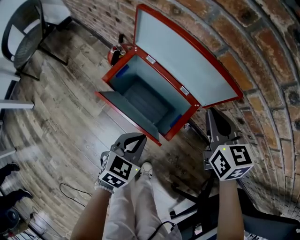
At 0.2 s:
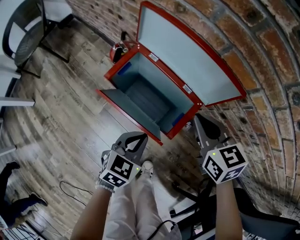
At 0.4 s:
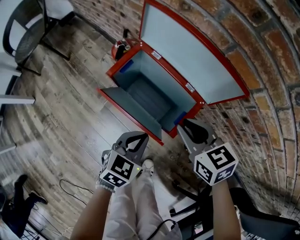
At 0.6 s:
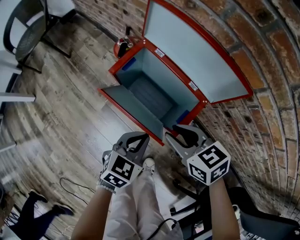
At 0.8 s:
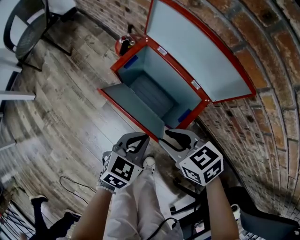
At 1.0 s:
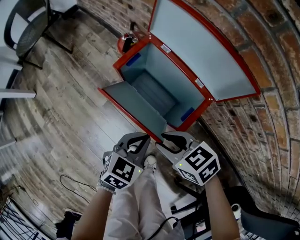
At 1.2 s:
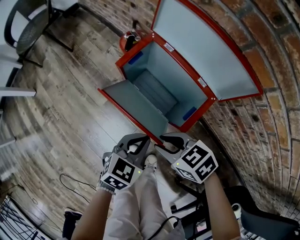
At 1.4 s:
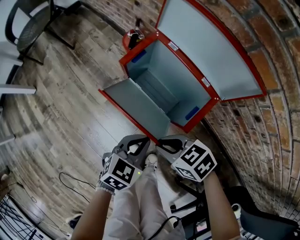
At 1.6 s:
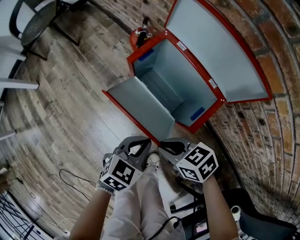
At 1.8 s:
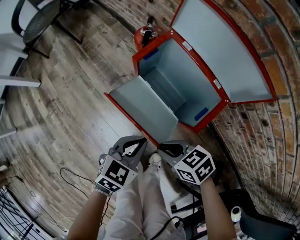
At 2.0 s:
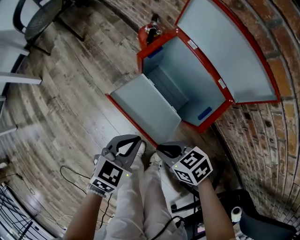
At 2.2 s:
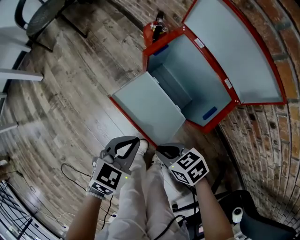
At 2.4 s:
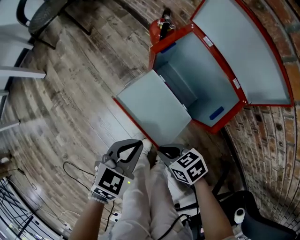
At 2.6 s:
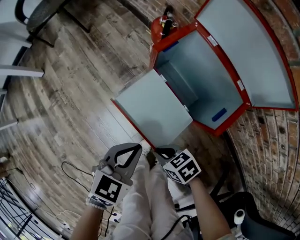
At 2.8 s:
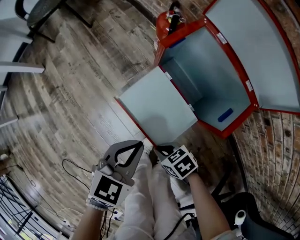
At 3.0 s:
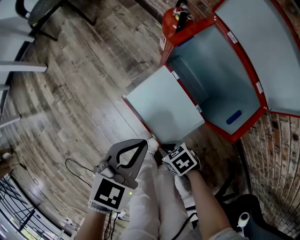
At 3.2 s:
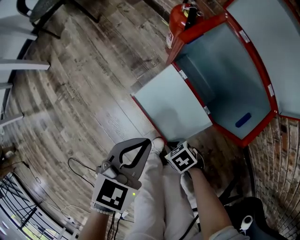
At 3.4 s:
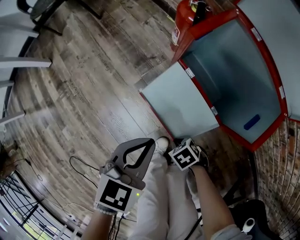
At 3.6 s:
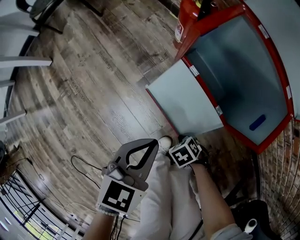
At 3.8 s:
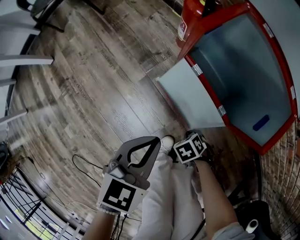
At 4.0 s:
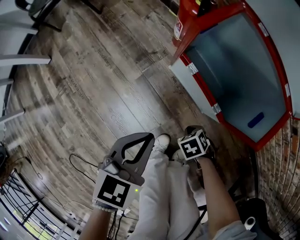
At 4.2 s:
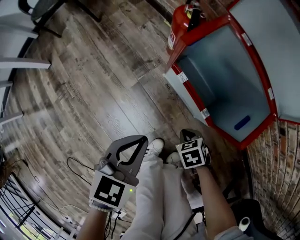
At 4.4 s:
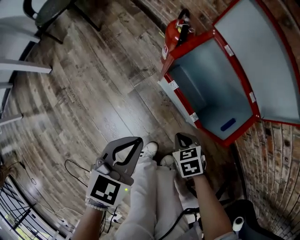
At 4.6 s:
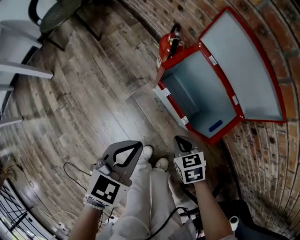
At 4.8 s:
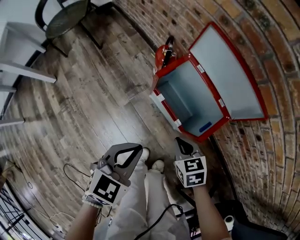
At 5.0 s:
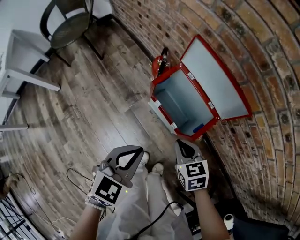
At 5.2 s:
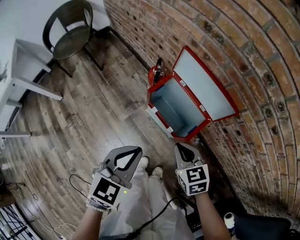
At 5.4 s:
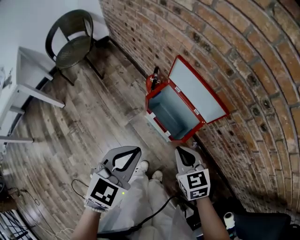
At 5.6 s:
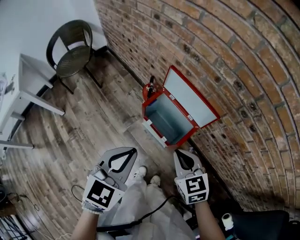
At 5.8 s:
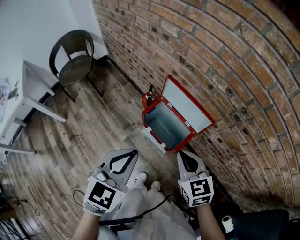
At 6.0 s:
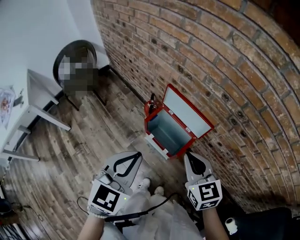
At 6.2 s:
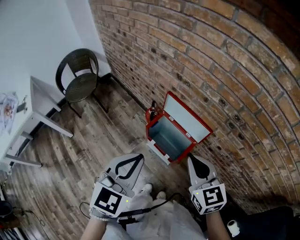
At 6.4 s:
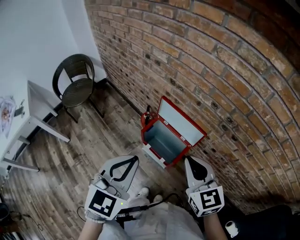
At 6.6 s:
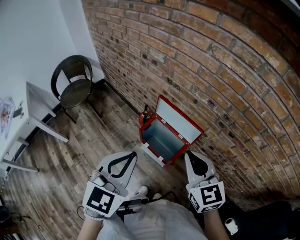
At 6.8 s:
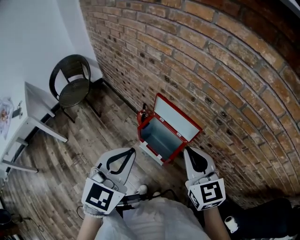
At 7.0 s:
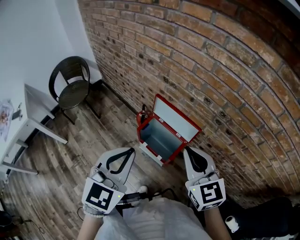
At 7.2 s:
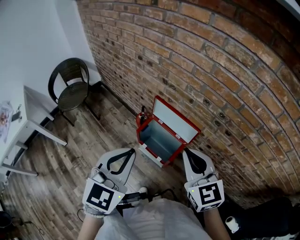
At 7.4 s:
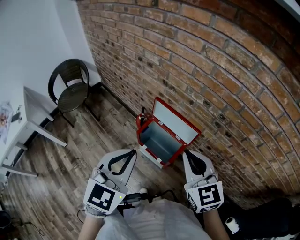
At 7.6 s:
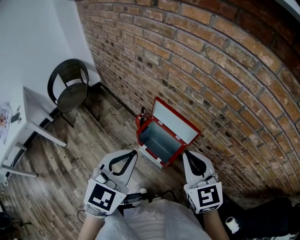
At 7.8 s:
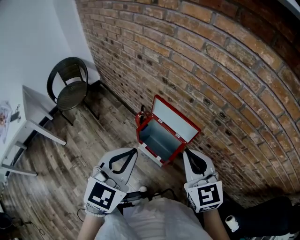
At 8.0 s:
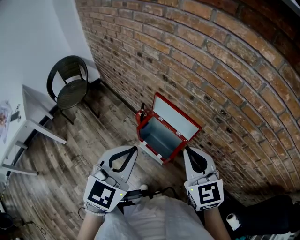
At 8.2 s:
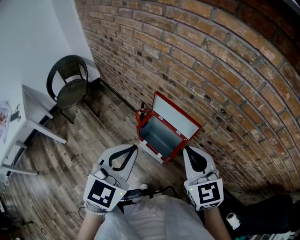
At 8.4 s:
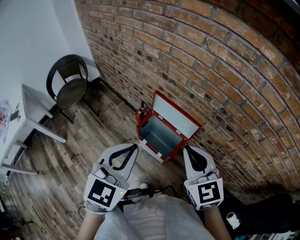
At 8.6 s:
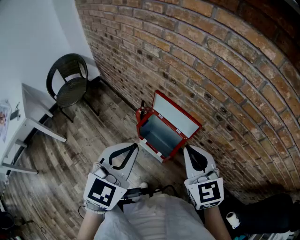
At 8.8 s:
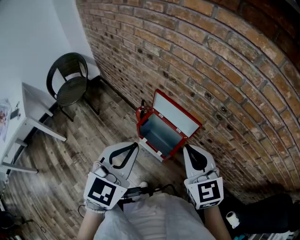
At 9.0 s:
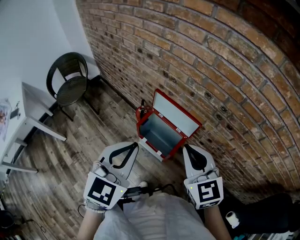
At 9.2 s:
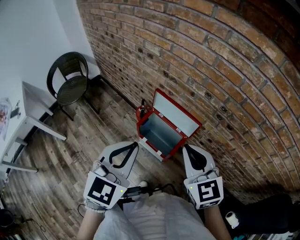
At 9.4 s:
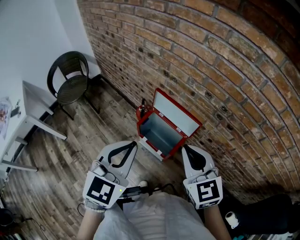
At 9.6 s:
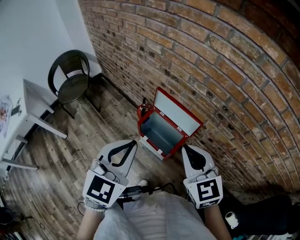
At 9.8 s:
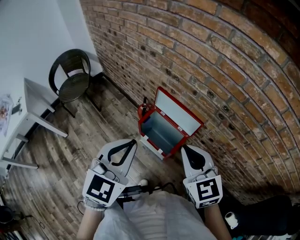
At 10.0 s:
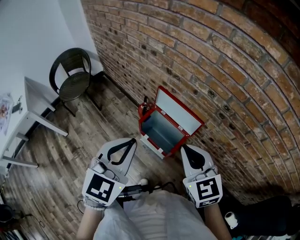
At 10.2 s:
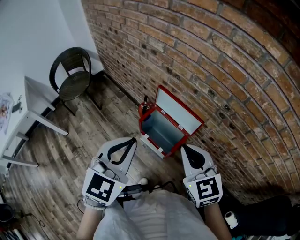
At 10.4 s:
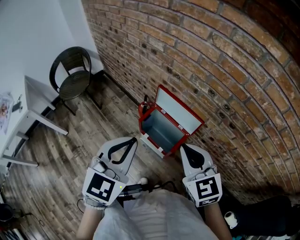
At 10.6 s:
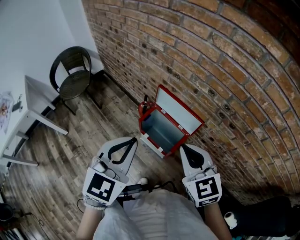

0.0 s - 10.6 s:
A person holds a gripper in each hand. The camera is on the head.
0.0 s - 1.6 s: The left gripper ends up roughly 10 cm from where it was. Meanwhile the right gripper ends up about 30 cm from where it was, and rotates approximately 60 degrees.
1.6 s - 3.0 s: The right gripper shifts roughly 20 cm downward, and rotates about 20 degrees. The left gripper changes place by about 10 cm.
3.0 s - 4.6 s: The left gripper travels upward by some 5 cm. The right gripper changes place by about 20 cm, and changes its angle by roughly 30 degrees.
4.6 s - 6.0 s: The two grippers go some 40 cm upward. The left gripper changes its angle by approximately 20 degrees, while the right gripper tilts its fingers roughly 30 degrees upward.
6.0 s - 7.6 s: The left gripper moves upward, roughly 5 cm. Meanwhile the right gripper is displaced upward by roughly 10 cm.
7.6 s - 9.0 s: Neither gripper changes place.
9.0 s - 10.6 s: There are only small adjustments of the grippers.

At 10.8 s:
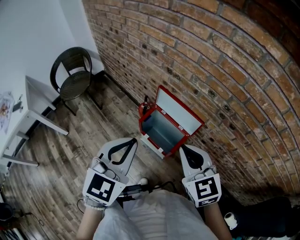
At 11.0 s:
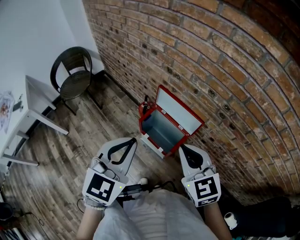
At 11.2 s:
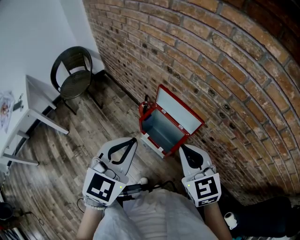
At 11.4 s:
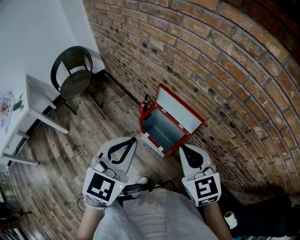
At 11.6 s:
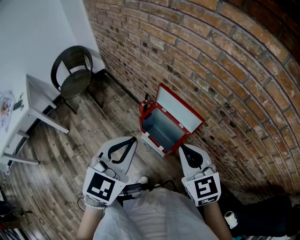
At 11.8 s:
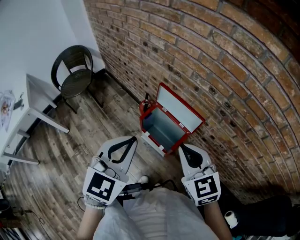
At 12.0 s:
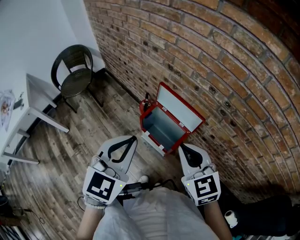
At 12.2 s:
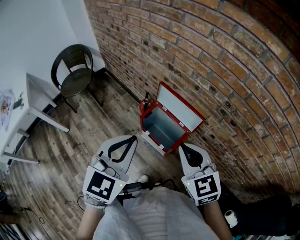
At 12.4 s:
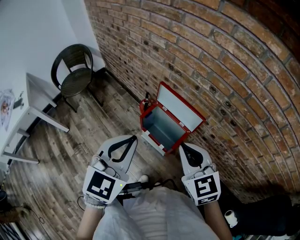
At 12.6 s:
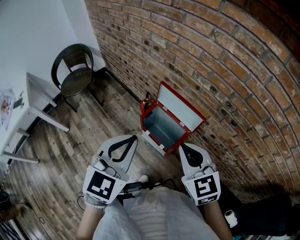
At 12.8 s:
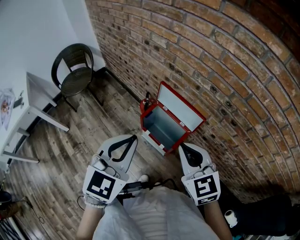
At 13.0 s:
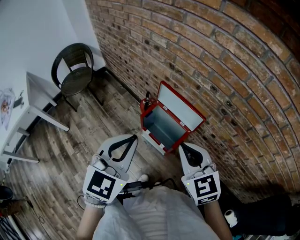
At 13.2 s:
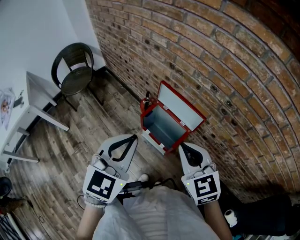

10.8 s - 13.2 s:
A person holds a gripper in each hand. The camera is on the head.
10.8 s - 12.0 s: Both grippers stay about where they are.
12.0 s - 13.2 s: Both grippers stay about where they are.

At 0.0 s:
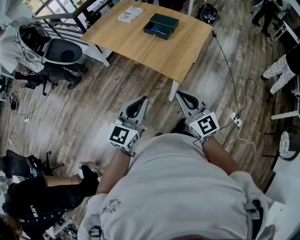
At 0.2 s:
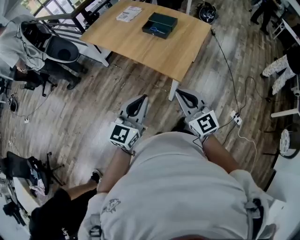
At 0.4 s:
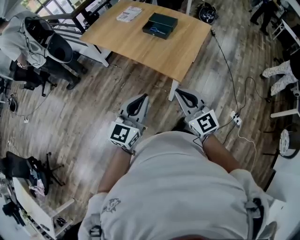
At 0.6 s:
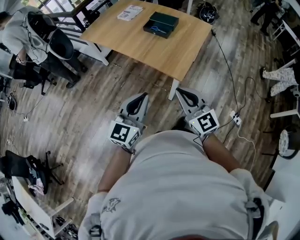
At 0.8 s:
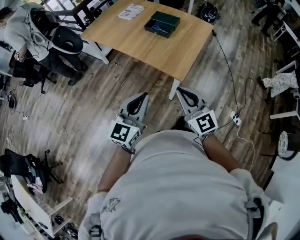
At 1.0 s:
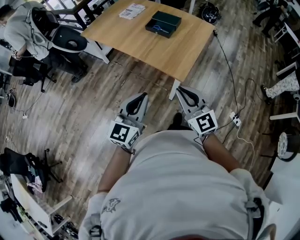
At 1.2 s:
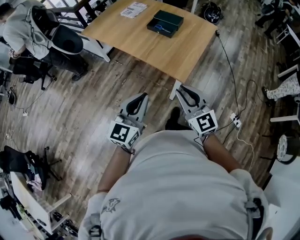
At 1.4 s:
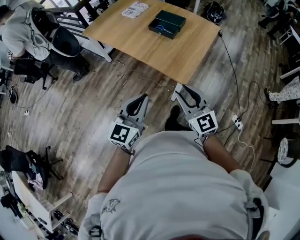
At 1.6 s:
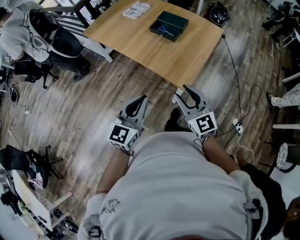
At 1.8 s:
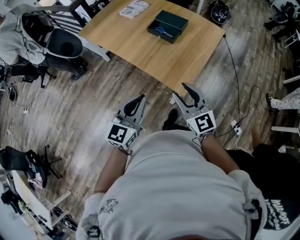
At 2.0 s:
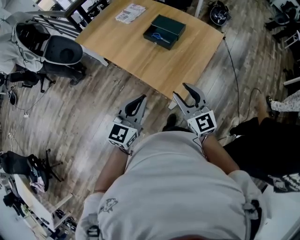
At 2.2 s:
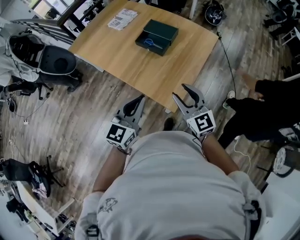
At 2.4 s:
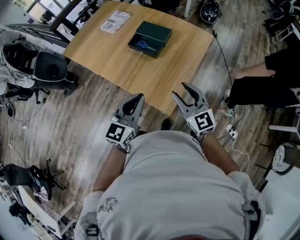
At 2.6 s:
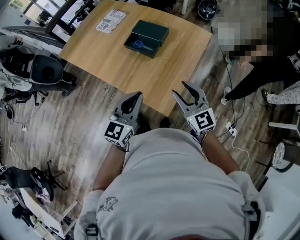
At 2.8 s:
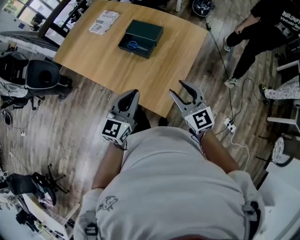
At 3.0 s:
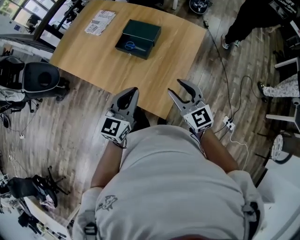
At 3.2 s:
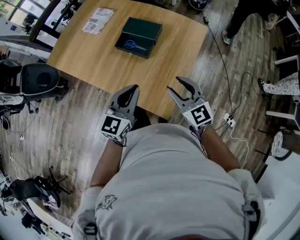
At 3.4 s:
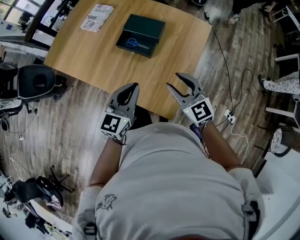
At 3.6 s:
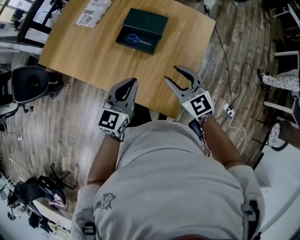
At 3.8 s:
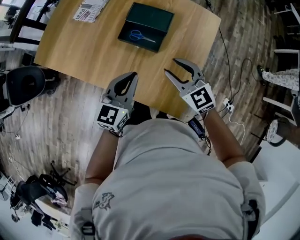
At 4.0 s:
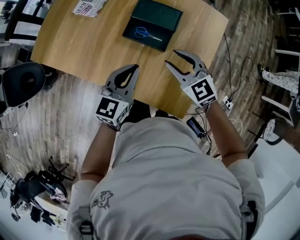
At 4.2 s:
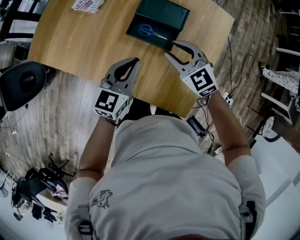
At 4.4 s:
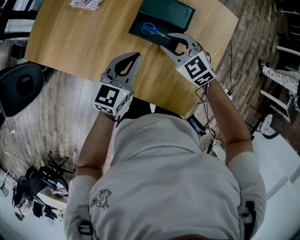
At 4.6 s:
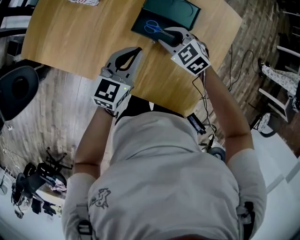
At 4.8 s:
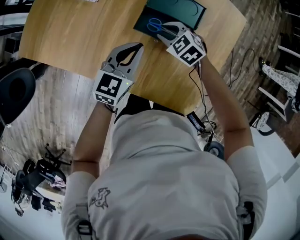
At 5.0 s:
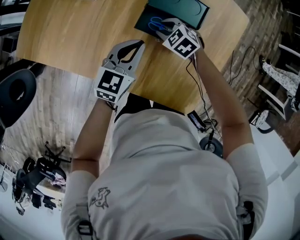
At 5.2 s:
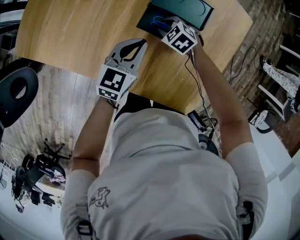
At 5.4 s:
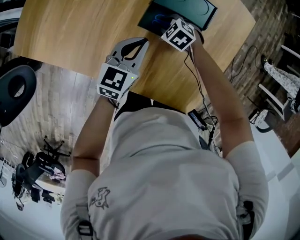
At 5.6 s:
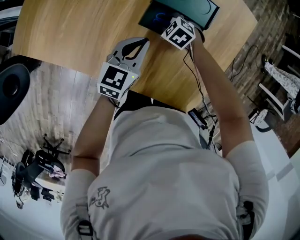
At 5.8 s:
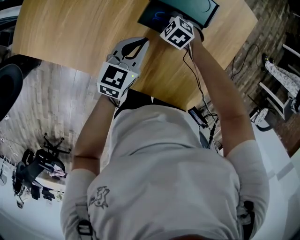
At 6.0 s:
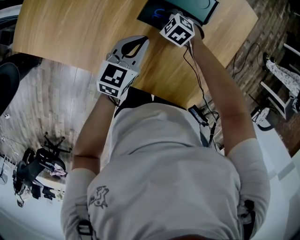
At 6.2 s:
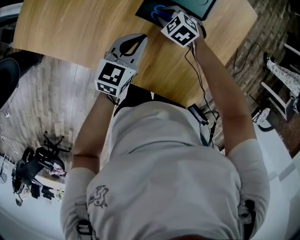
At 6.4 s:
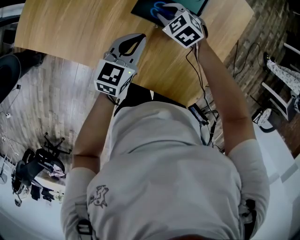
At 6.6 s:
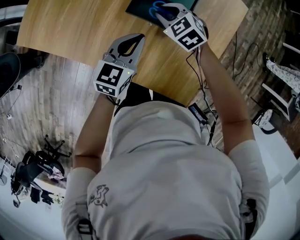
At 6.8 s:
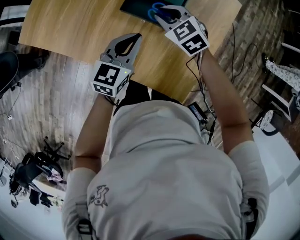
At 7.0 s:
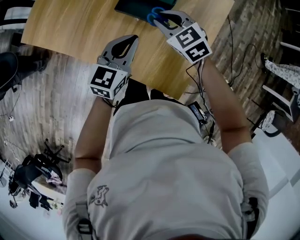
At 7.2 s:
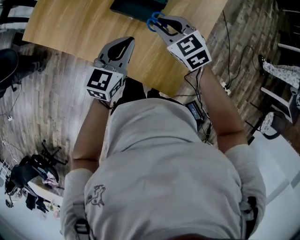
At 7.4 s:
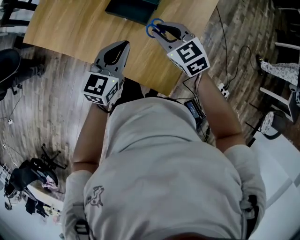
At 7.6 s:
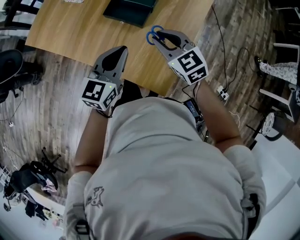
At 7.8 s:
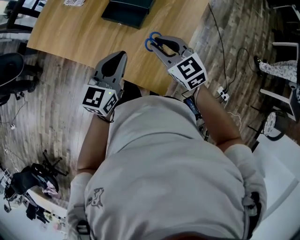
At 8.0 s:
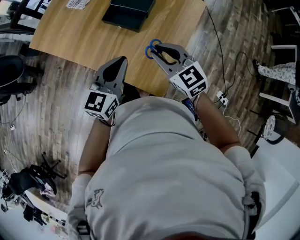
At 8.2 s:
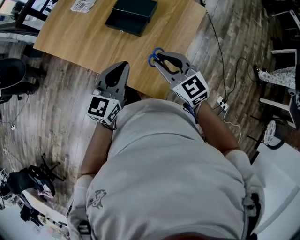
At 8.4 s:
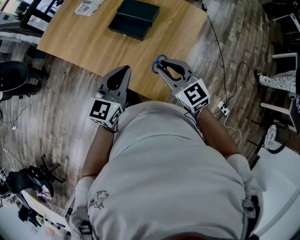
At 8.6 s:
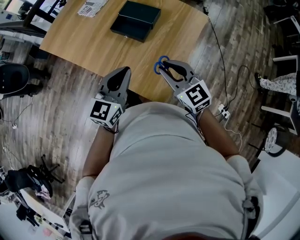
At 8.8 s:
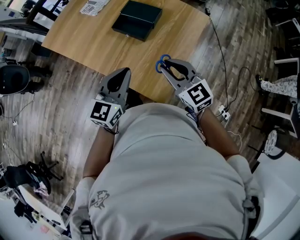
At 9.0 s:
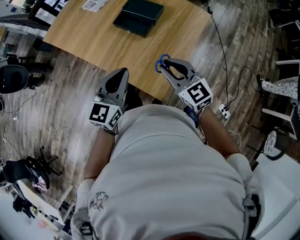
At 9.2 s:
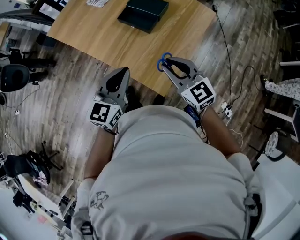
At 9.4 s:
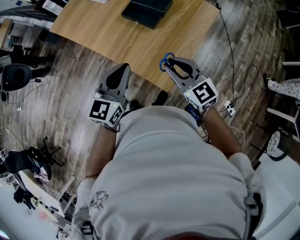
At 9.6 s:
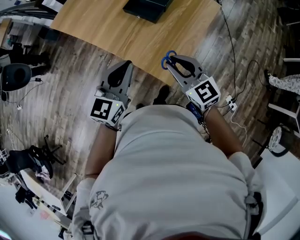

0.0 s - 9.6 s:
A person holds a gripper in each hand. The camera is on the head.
0.0 s - 1.6 s: The grippers both shift forward by roughly 10 cm. The right gripper opens its fingers.
1.6 s - 3.2 s: The two grippers go about 30 cm forward.
3.2 s - 4.8 s: Both grippers travel together forward, downward and to the left, some 35 cm. The right gripper tilts its fingers roughly 40 degrees downward.
4.8 s - 6.4 s: The right gripper goes downward and returns, roughly 10 cm each way.
6.4 s - 8.0 s: Both grippers travel together backward, upward and to the right, about 35 cm. The right gripper points its fingers some 30 degrees further upward.
8.0 s - 9.6 s: Both grippers move backward, roughly 10 cm.

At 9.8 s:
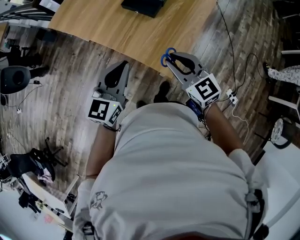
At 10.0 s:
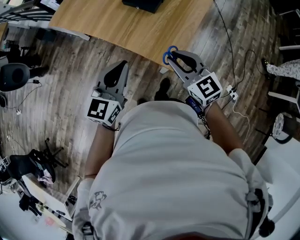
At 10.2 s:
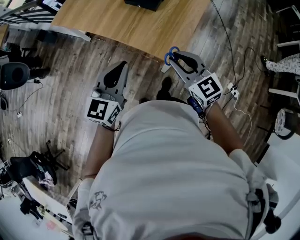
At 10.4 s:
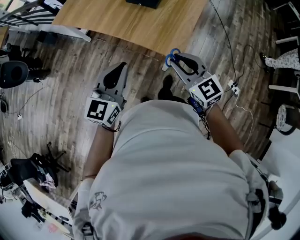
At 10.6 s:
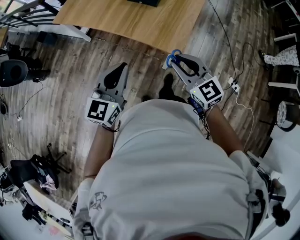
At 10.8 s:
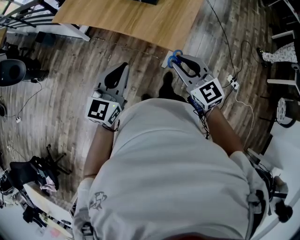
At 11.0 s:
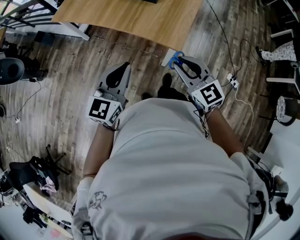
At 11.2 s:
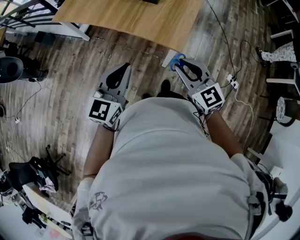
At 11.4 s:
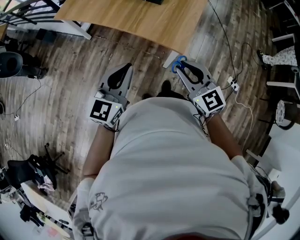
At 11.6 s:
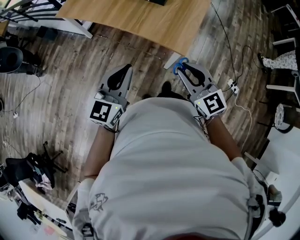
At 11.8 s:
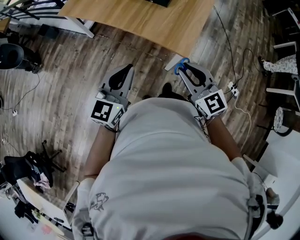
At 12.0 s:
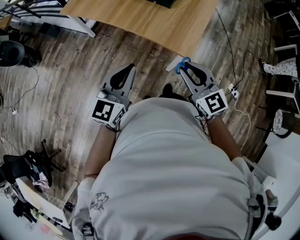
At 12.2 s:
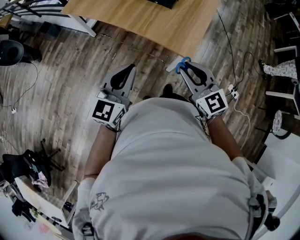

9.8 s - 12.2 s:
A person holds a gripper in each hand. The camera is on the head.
9.8 s - 11.0 s: The left gripper is displaced backward and to the left by about 20 cm; the right gripper is displaced backward by approximately 20 cm.
11.0 s - 12.2 s: The grippers make only small movements.
